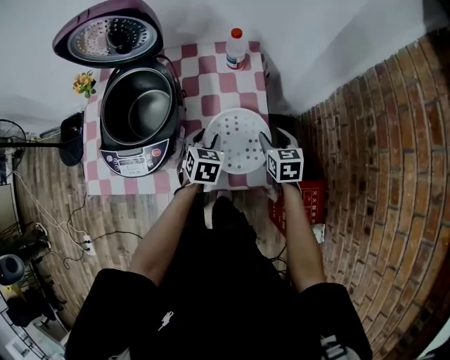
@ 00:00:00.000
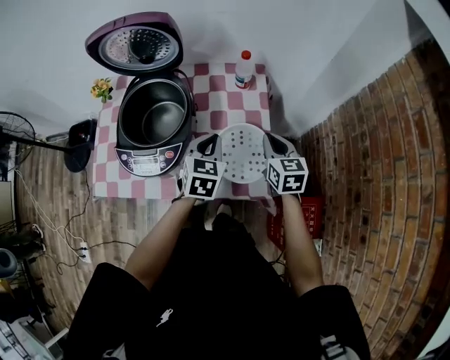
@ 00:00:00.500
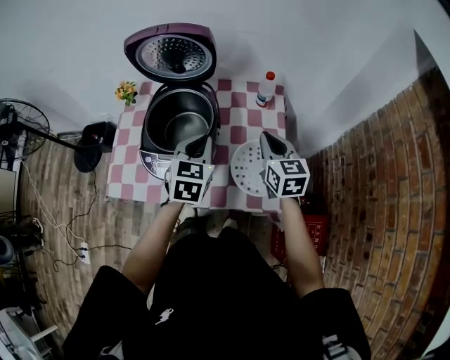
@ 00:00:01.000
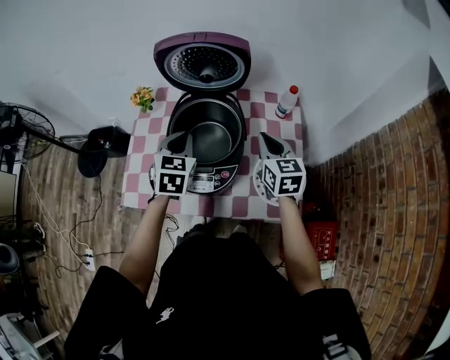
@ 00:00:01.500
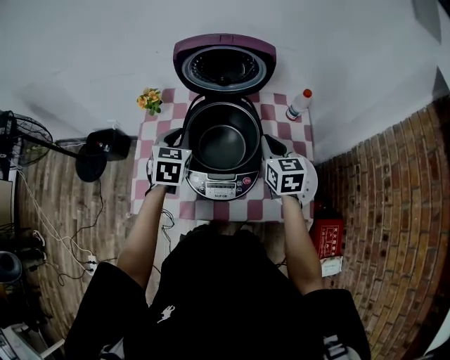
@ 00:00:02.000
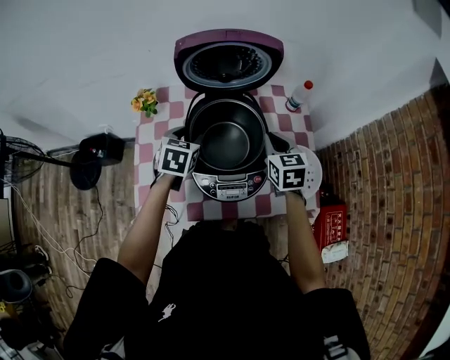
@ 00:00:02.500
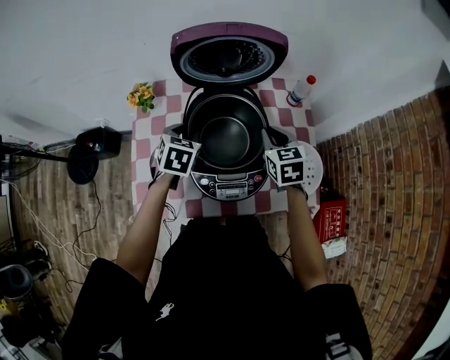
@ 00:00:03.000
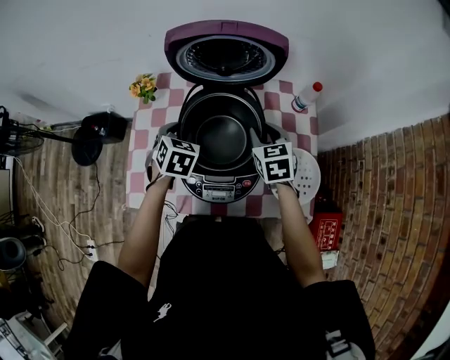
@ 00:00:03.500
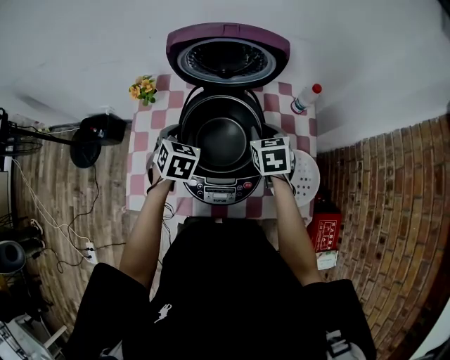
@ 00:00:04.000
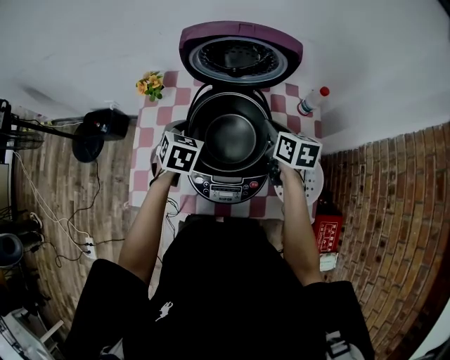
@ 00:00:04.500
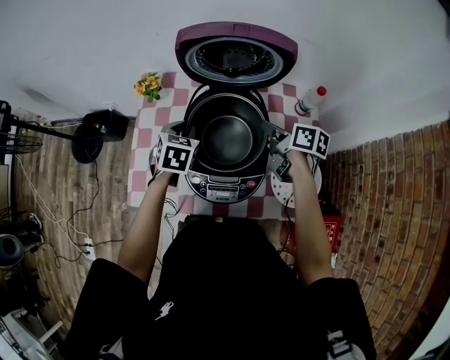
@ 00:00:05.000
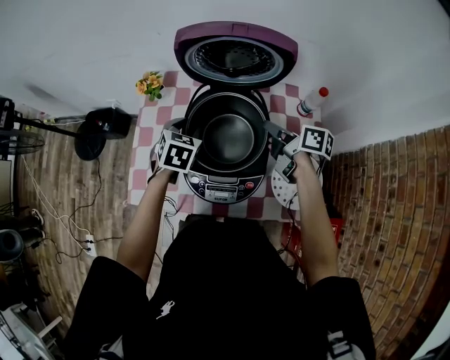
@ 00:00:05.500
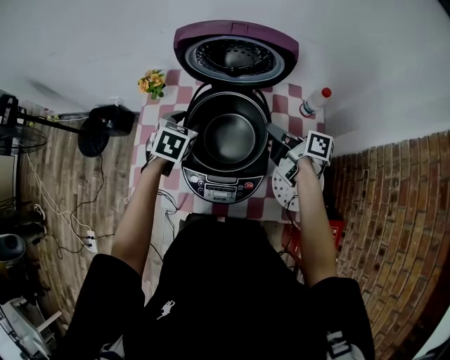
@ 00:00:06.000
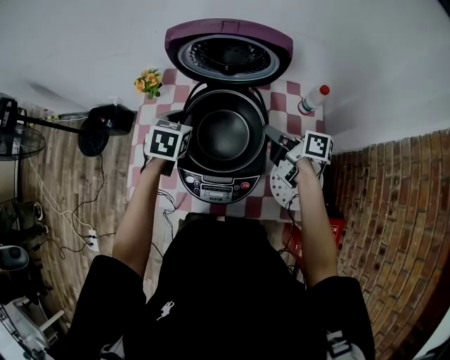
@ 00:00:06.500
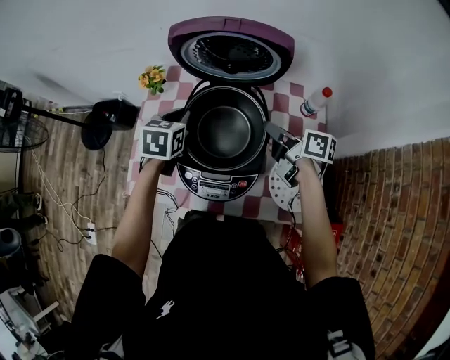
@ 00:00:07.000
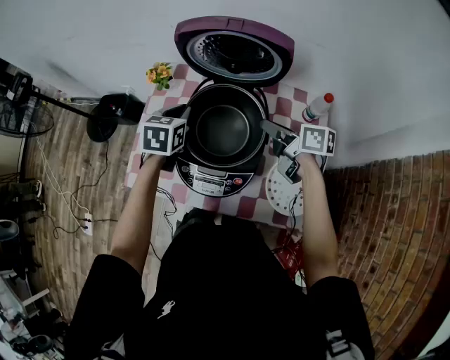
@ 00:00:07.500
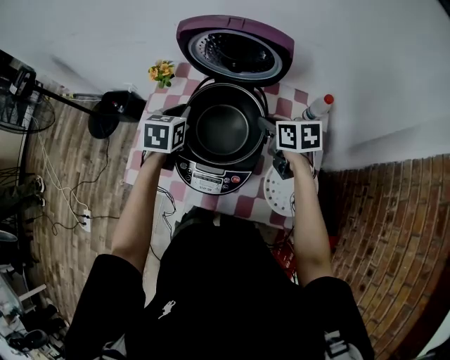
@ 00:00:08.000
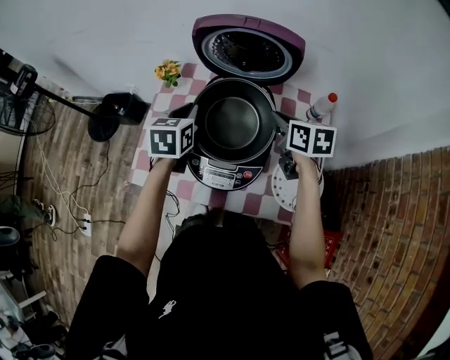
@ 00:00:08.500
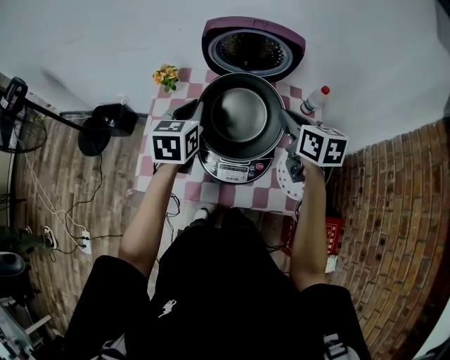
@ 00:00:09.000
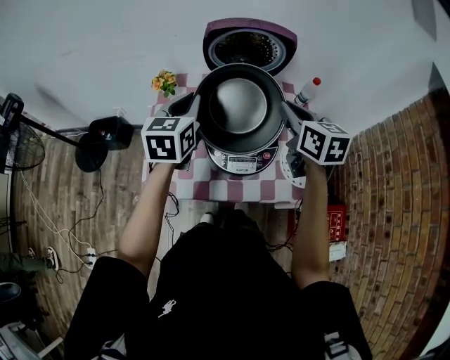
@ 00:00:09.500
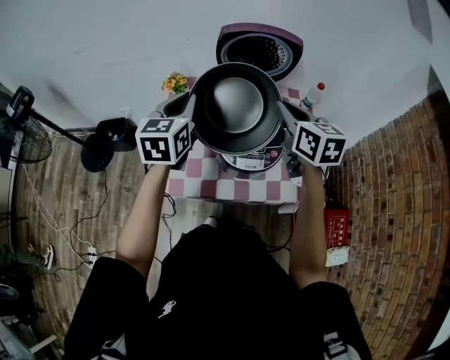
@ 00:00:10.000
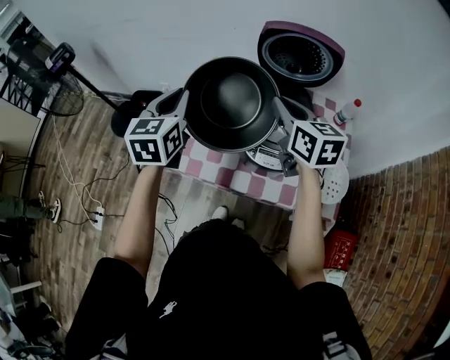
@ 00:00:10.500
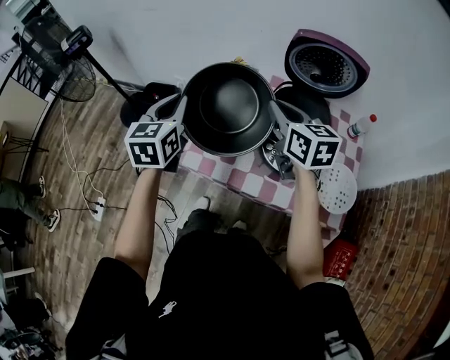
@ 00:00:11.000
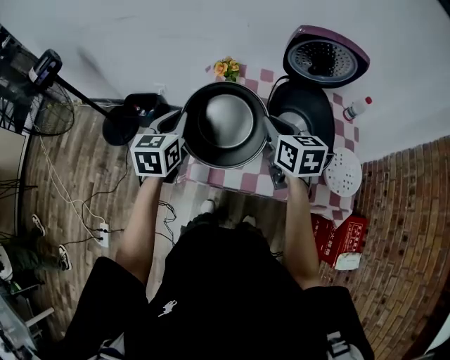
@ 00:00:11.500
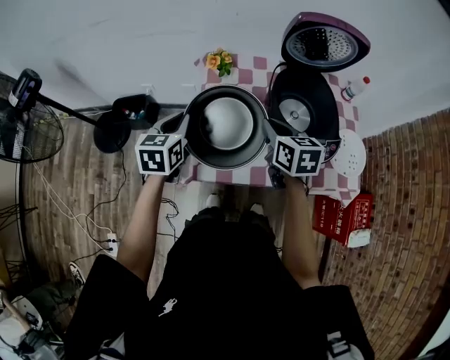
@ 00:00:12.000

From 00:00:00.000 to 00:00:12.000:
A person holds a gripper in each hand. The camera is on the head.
From 00:00:00.000 to 00:00:02.000: The grippers both shift to the left and upward by some 35 cm. The left gripper closes up. The right gripper closes its fingers.
From 00:00:02.000 to 00:00:04.000: The two grippers go approximately 5 cm downward.
From 00:00:04.000 to 00:00:06.000: The right gripper angles its fingers upward, by some 30 degrees.
From 00:00:06.000 to 00:00:08.000: The left gripper changes its angle by about 20 degrees, and closes up; the right gripper turns by roughly 50 degrees.
From 00:00:08.000 to 00:00:10.000: The left gripper shifts some 20 cm upward, to the left and backward, and changes its angle by approximately 30 degrees. Meanwhile the right gripper moves upward, backward and to the left, approximately 20 cm, and swivels approximately 30 degrees.
From 00:00:10.000 to 00:00:12.000: Both grippers travel together to the left and downward, roughly 25 cm.

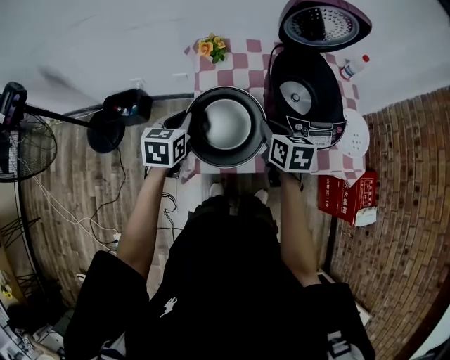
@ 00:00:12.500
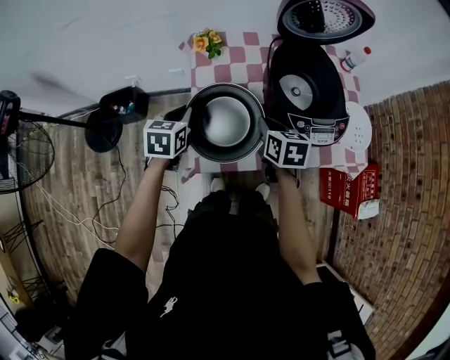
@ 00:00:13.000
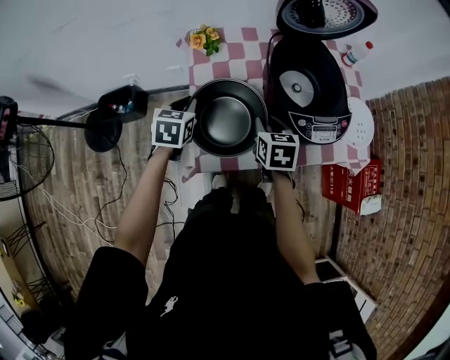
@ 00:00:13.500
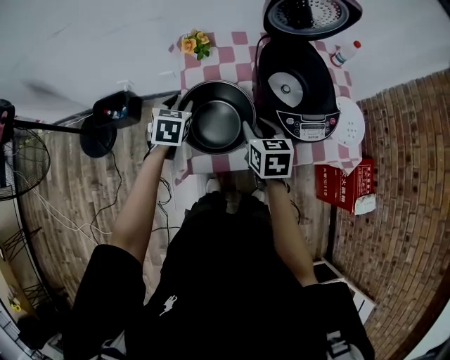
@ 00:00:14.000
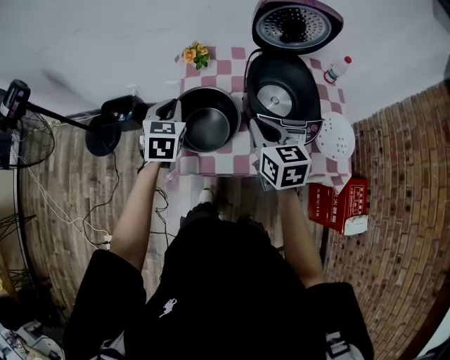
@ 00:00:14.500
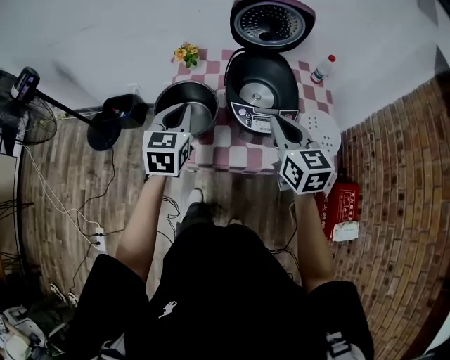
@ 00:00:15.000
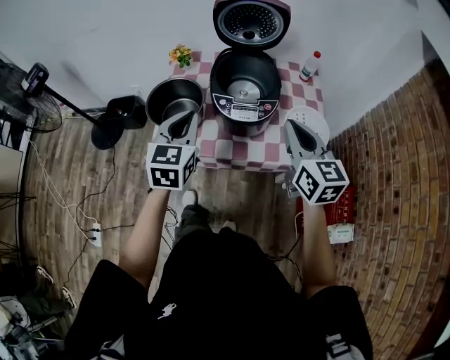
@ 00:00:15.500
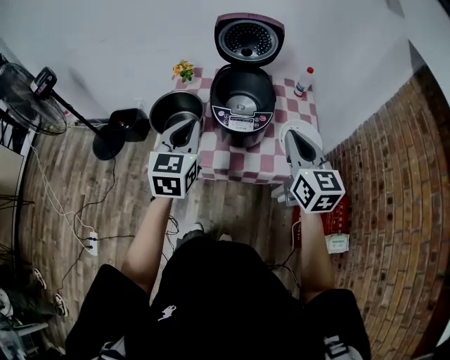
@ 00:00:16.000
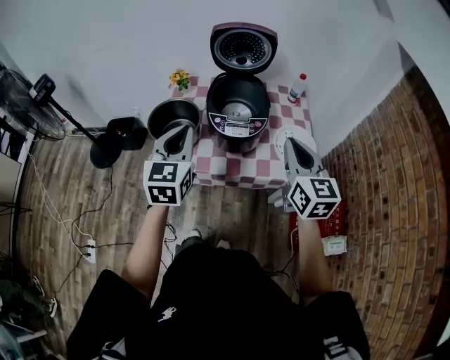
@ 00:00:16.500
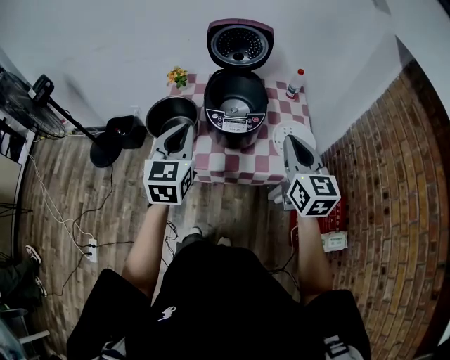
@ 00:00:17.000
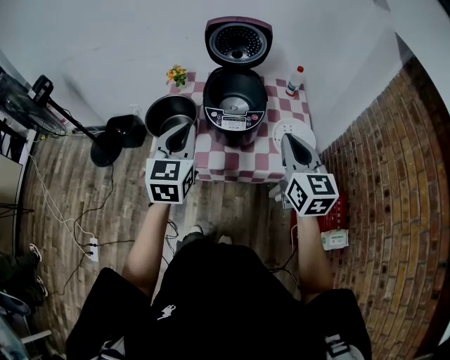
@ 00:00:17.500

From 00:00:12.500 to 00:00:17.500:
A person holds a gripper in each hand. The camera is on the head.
From 00:00:12.500 to 00:00:15.000: Both grippers travel together to the right, upward and backward, approximately 20 cm. The right gripper turns by some 30 degrees, and opens, then closes once more. The left gripper turns by approximately 20 degrees, and opens, then closes again.
From 00:00:15.000 to 00:00:17.500: Both grippers travel together backward, to the right and upward, about 20 cm.

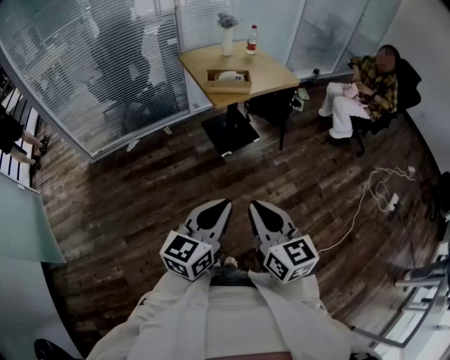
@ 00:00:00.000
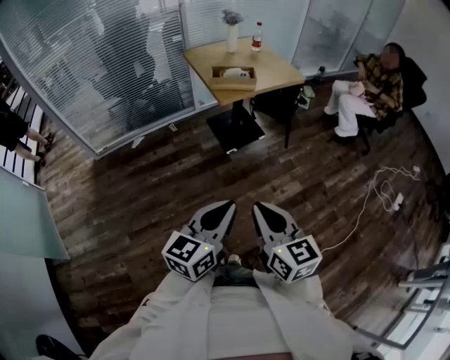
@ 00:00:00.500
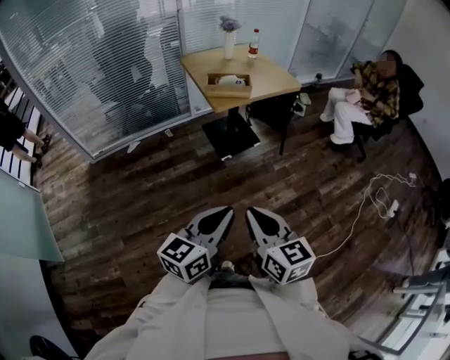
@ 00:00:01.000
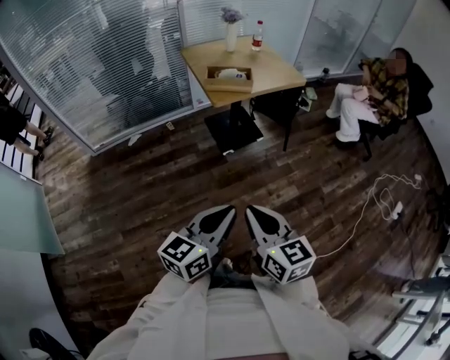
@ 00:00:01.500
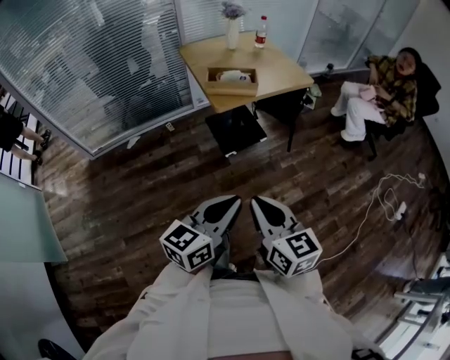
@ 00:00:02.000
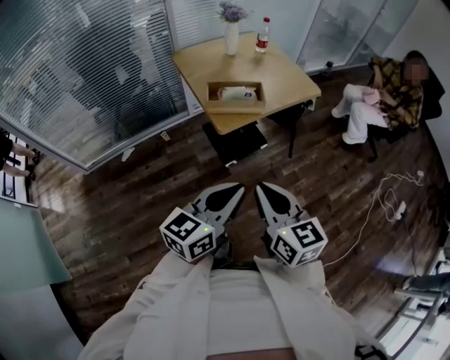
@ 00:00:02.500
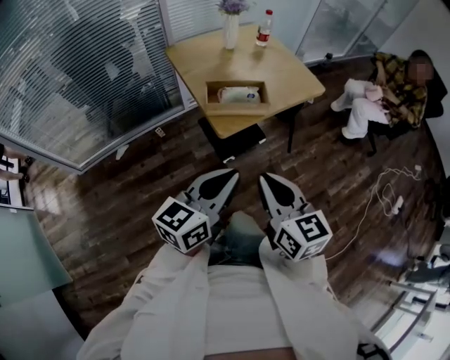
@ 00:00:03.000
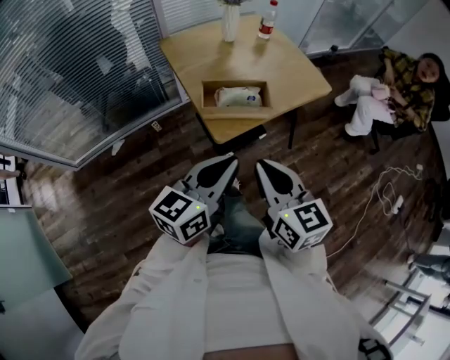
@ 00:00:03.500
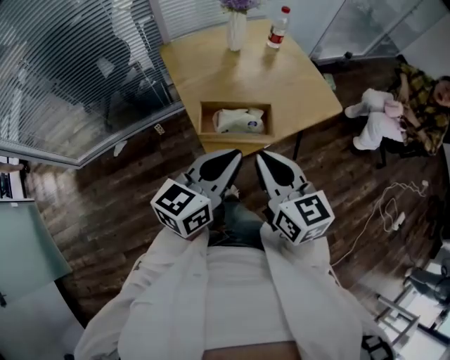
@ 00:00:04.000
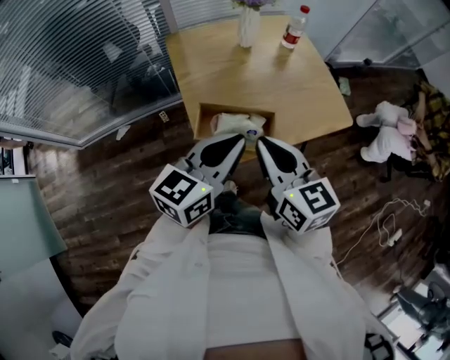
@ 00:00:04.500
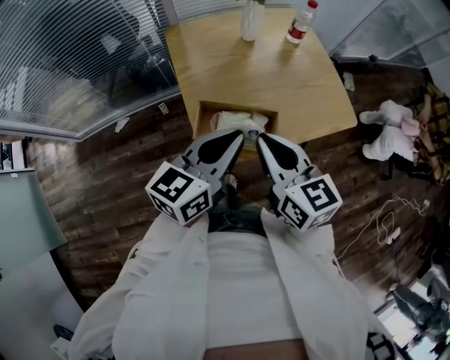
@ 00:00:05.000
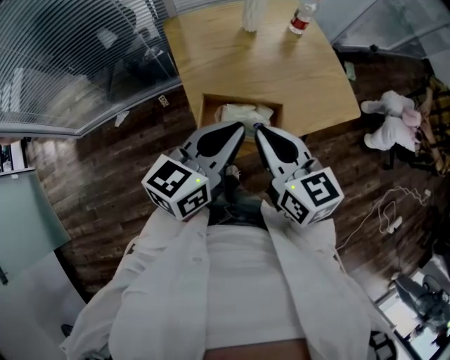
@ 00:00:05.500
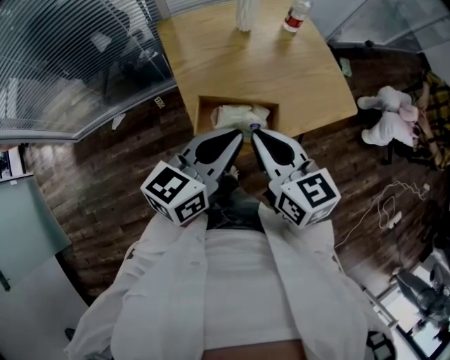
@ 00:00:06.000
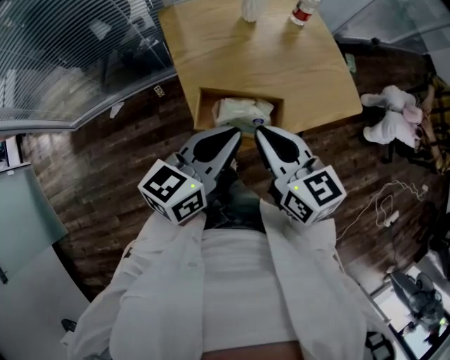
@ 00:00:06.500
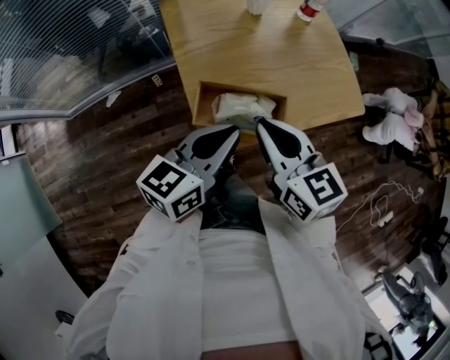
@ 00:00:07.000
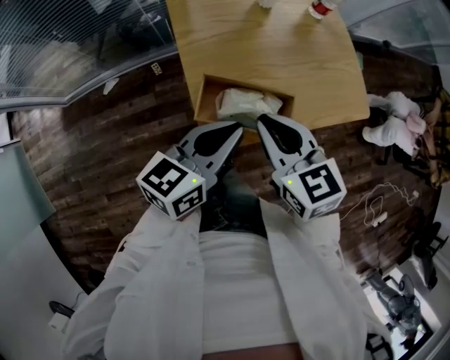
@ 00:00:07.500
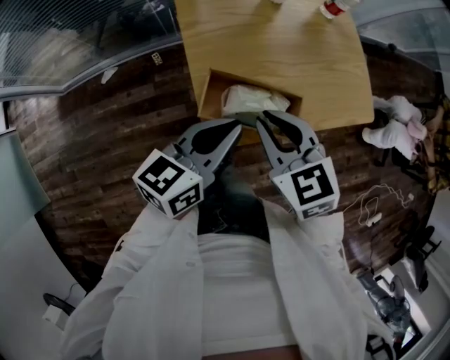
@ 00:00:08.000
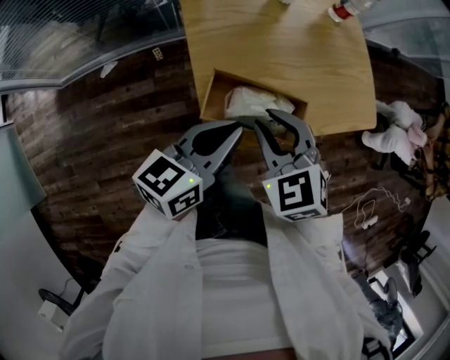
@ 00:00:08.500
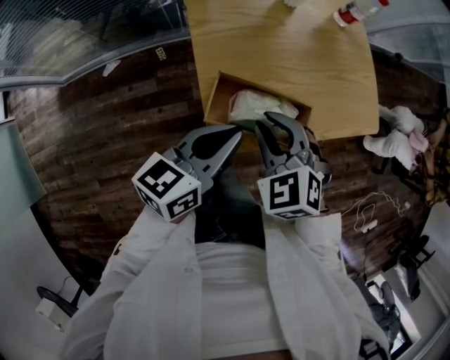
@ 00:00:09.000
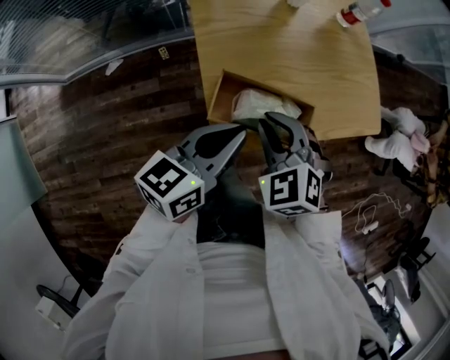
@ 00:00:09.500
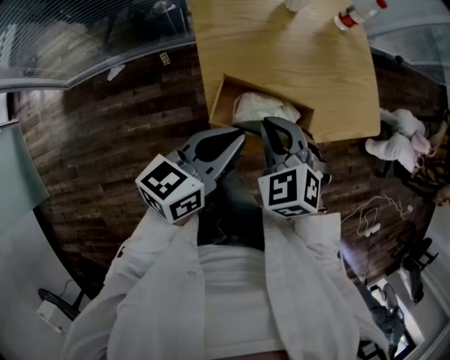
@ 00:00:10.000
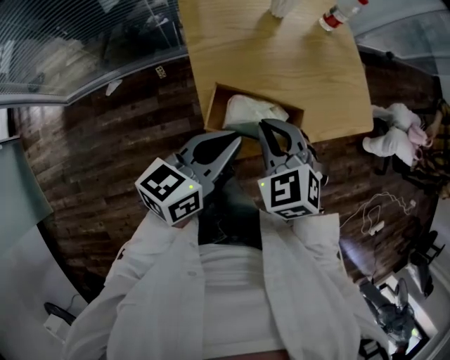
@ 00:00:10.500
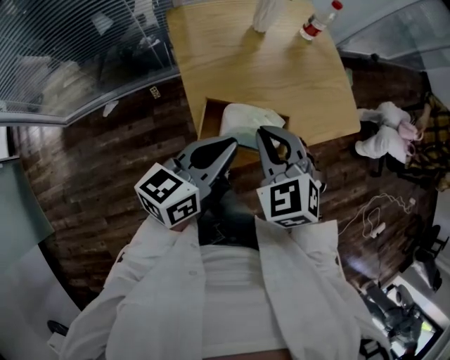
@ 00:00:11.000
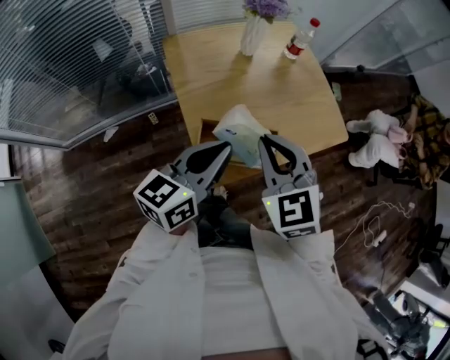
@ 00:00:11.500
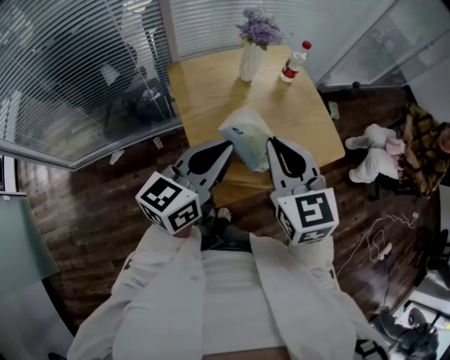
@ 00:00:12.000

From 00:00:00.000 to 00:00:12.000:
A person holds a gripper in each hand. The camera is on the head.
From 00:00:00.000 to 00:00:02.000: The grippers both shift forward by roughly 10 cm.
From 00:00:02.000 to 00:00:04.000: The two grippers travel together, forward, roughly 40 cm.
From 00:00:04.000 to 00:00:06.000: Both grippers move forward, approximately 10 cm.
From 00:00:06.000 to 00:00:08.000: Both grippers travel together downward, approximately 5 cm. The right gripper rotates about 30 degrees.
From 00:00:08.000 to 00:00:10.000: The right gripper shifts roughly 5 cm downward, and turns by about 30 degrees.
From 00:00:10.000 to 00:00:12.000: The left gripper travels upward by some 10 cm, and rotates roughly 20 degrees; the right gripper is displaced upward by approximately 20 cm, and changes its angle by some 40 degrees.
